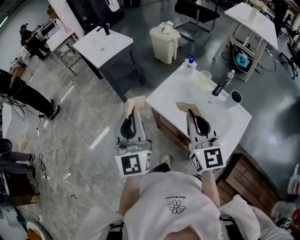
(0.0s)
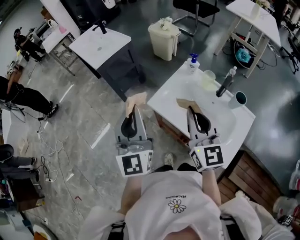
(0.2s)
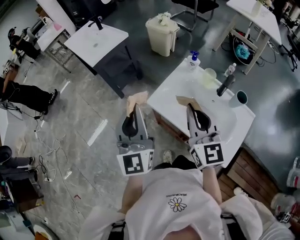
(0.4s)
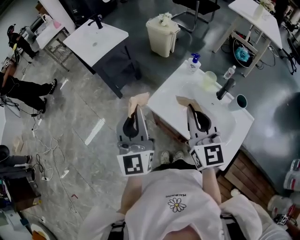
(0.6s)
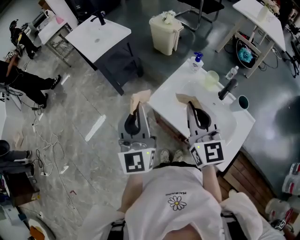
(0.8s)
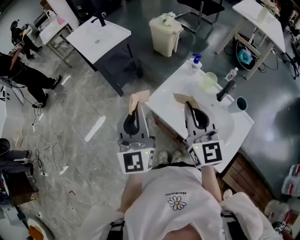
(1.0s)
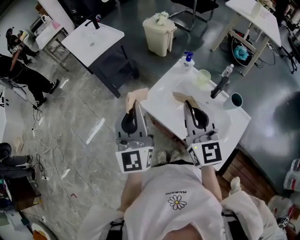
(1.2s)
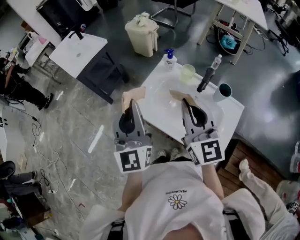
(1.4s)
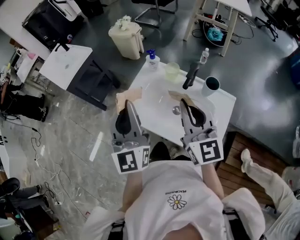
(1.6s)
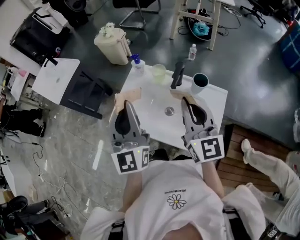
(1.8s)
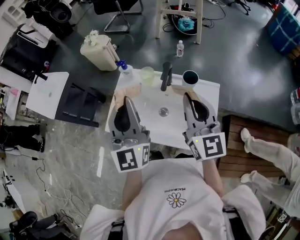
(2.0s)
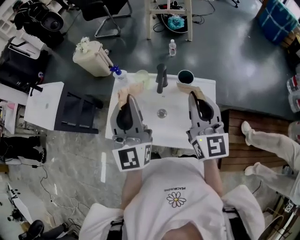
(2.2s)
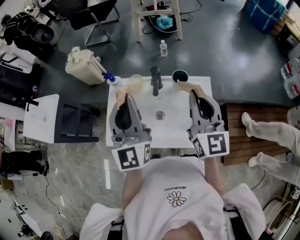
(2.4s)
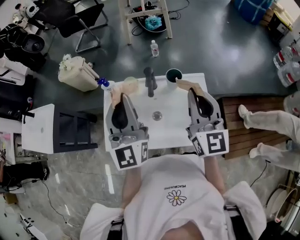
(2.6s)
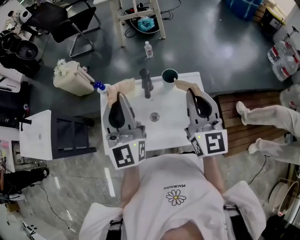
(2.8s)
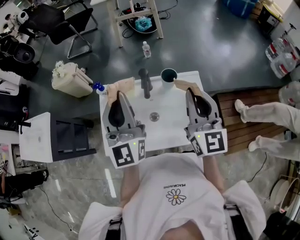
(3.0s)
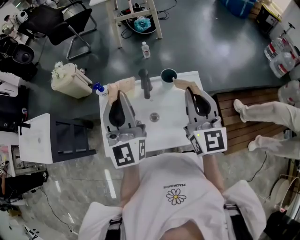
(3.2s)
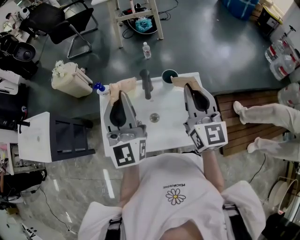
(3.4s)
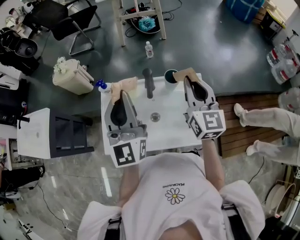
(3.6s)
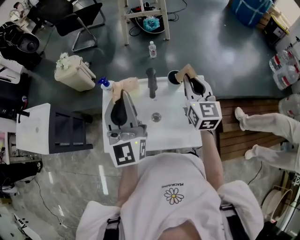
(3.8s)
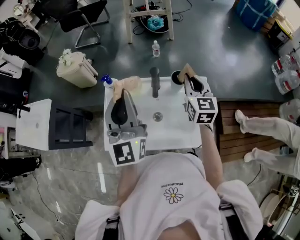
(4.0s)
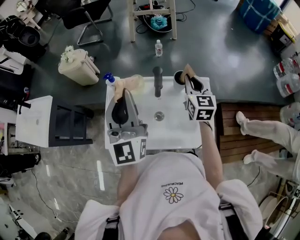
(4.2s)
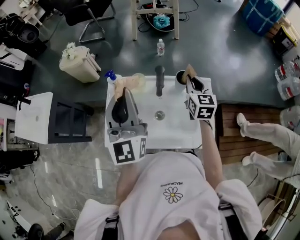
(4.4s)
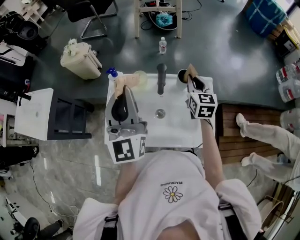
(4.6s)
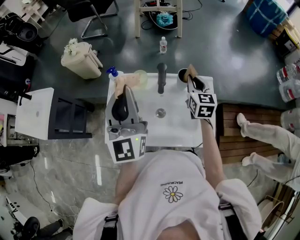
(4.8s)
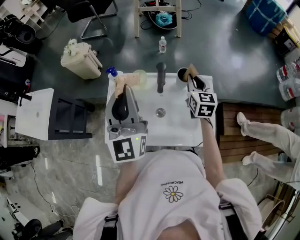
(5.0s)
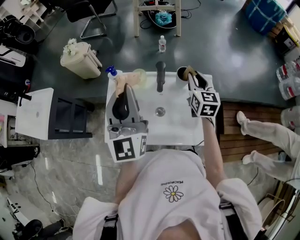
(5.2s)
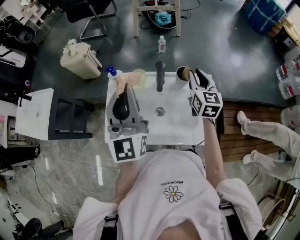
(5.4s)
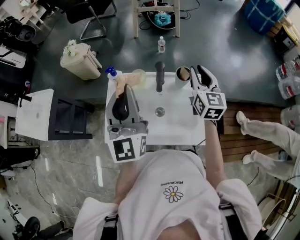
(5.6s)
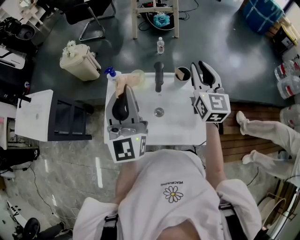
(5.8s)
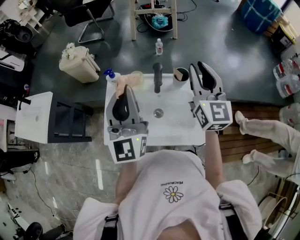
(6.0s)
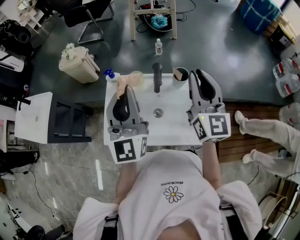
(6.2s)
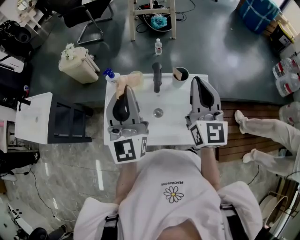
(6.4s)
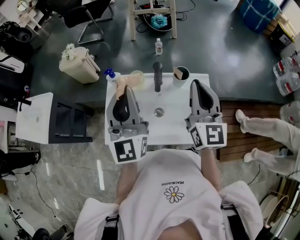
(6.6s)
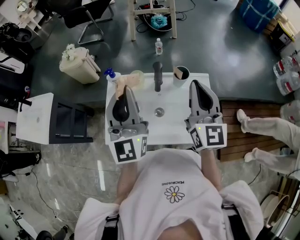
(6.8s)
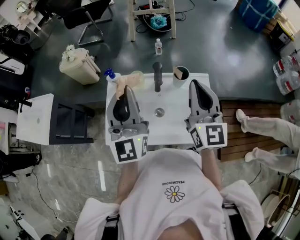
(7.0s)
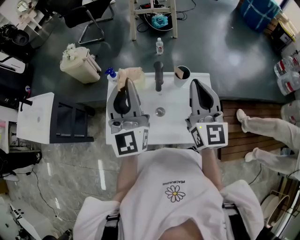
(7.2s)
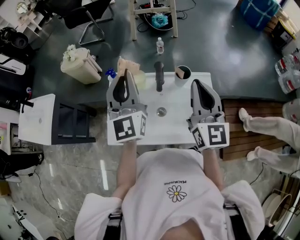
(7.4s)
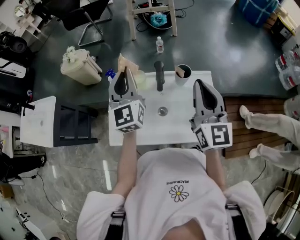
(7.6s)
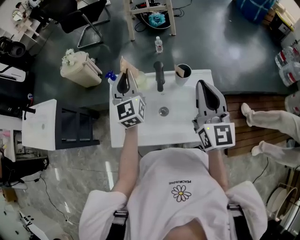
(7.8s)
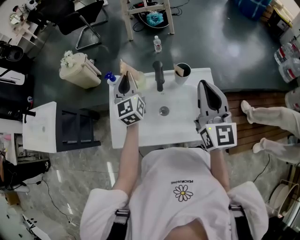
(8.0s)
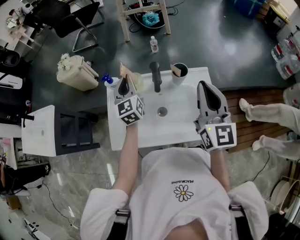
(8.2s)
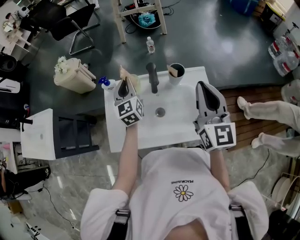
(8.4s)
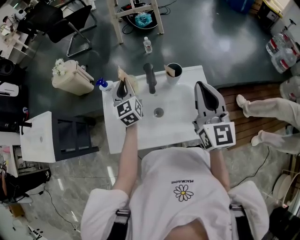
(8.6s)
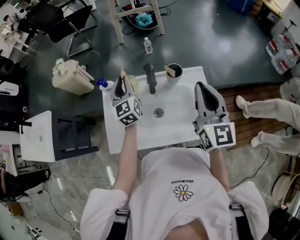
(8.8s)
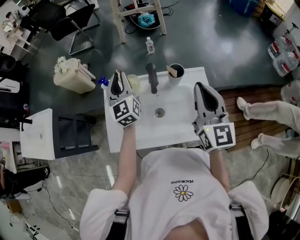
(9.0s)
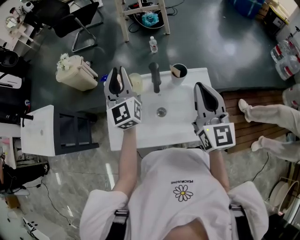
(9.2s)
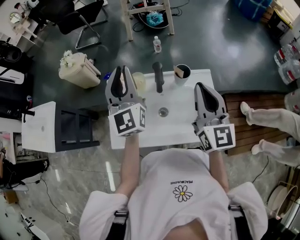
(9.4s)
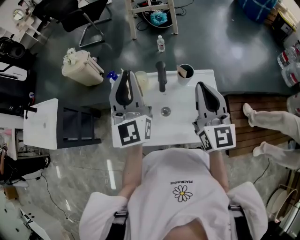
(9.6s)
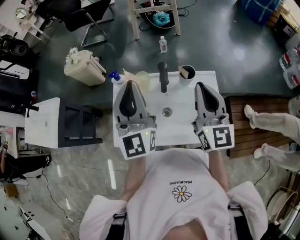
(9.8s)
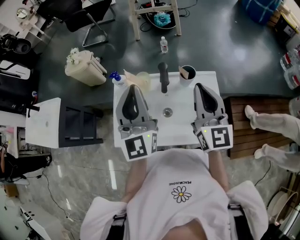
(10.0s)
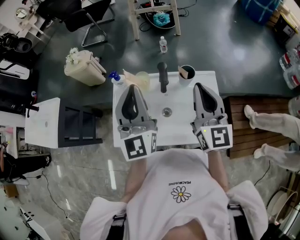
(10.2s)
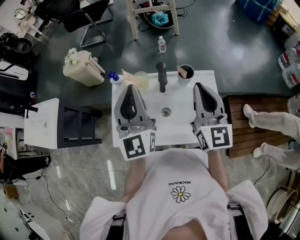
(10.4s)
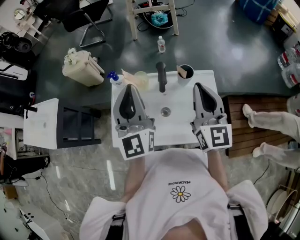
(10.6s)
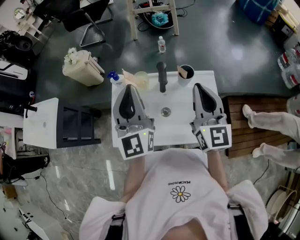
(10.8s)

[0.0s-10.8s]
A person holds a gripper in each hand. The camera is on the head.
0.0s to 1.6s: Both grippers travel together to the right and forward, roughly 15 cm.
1.6s to 3.0s: The right gripper moves about 15 cm, and changes its angle by about 40 degrees. Meanwhile the left gripper ends up about 15 cm from where it was, and swivels roughly 30 degrees.
3.0s to 4.6s: The right gripper is displaced forward and downward by roughly 20 cm, and changes its angle by roughly 20 degrees.
4.6s to 6.2s: The right gripper goes approximately 20 cm upward and backward, and rotates about 30 degrees.
6.2s to 7.8s: The left gripper travels forward and downward by some 15 cm.
7.8s to 9.2s: The left gripper travels downward and back again, some 10 cm each way.
9.2s to 10.8s: The left gripper goes roughly 10 cm backward.

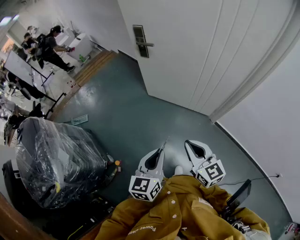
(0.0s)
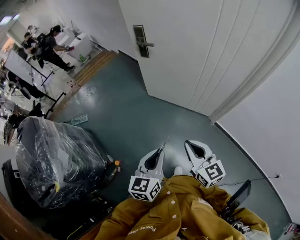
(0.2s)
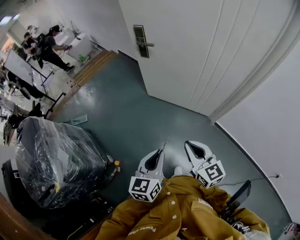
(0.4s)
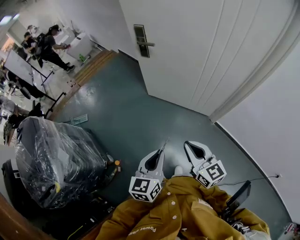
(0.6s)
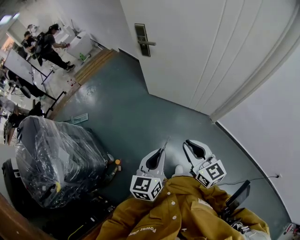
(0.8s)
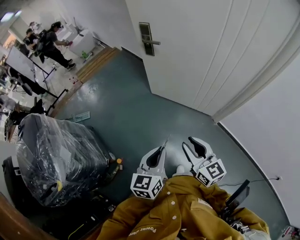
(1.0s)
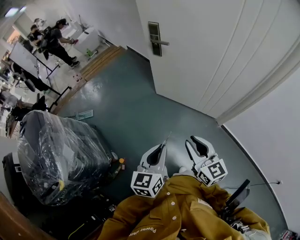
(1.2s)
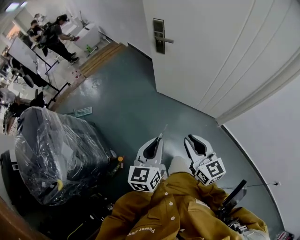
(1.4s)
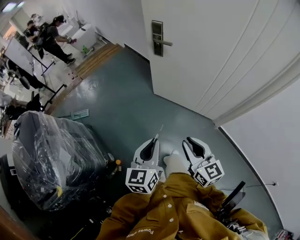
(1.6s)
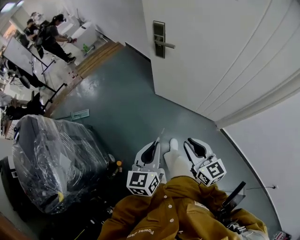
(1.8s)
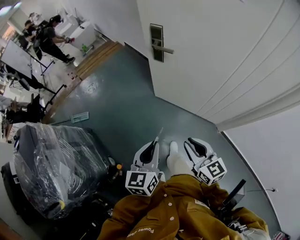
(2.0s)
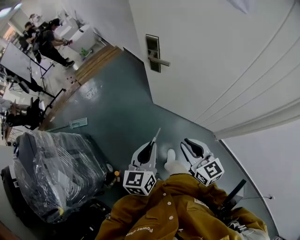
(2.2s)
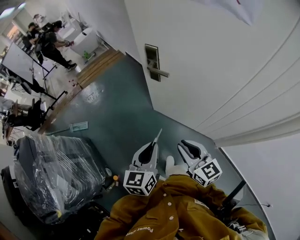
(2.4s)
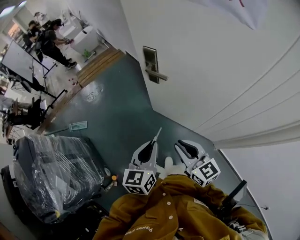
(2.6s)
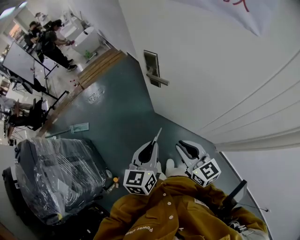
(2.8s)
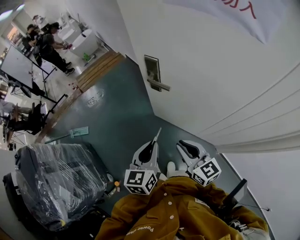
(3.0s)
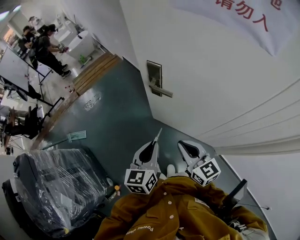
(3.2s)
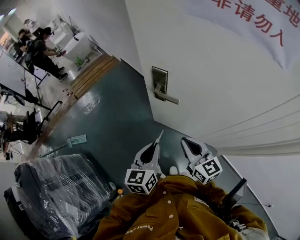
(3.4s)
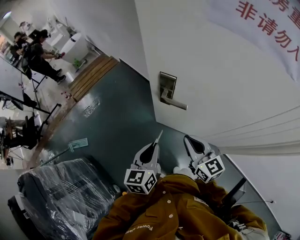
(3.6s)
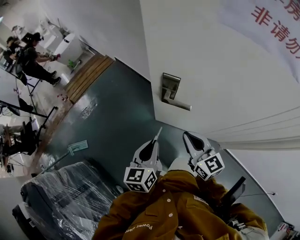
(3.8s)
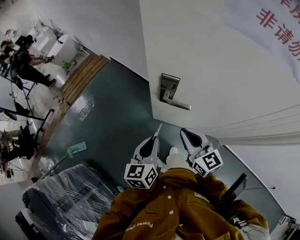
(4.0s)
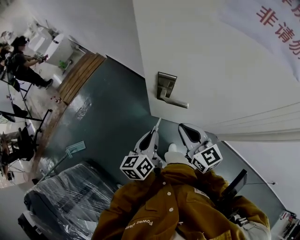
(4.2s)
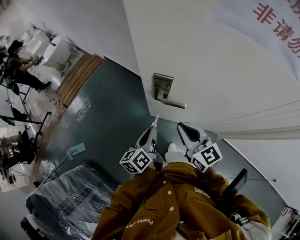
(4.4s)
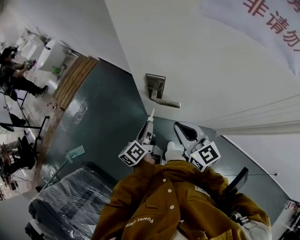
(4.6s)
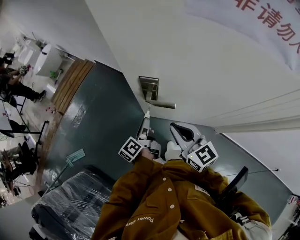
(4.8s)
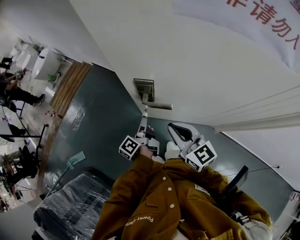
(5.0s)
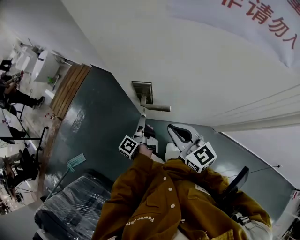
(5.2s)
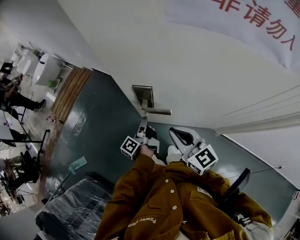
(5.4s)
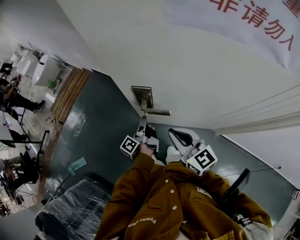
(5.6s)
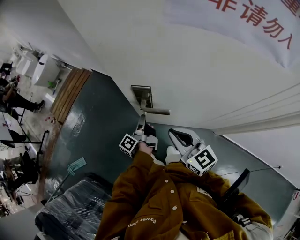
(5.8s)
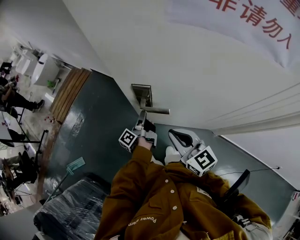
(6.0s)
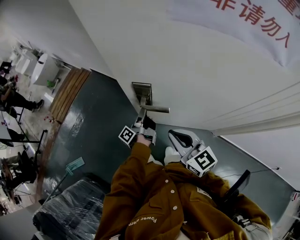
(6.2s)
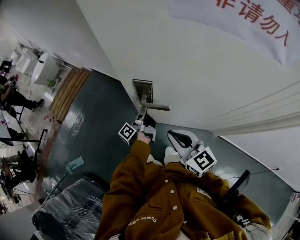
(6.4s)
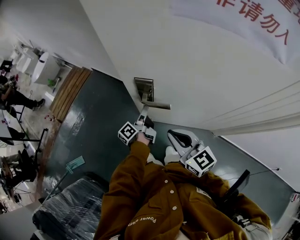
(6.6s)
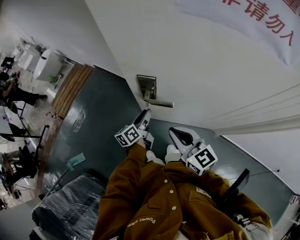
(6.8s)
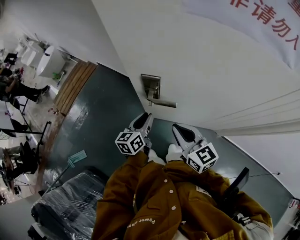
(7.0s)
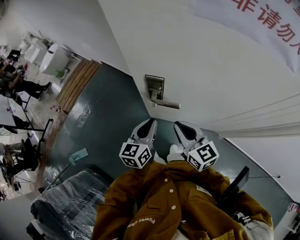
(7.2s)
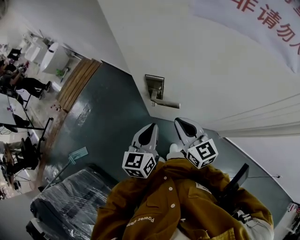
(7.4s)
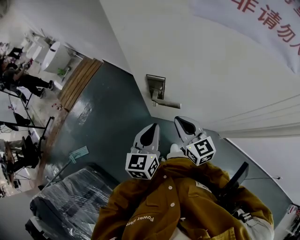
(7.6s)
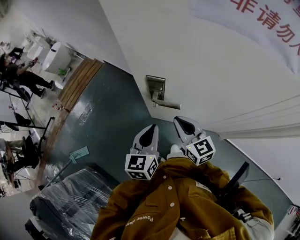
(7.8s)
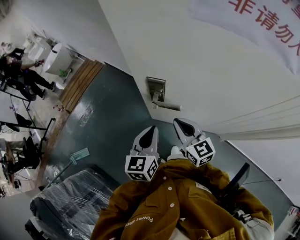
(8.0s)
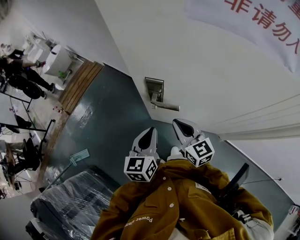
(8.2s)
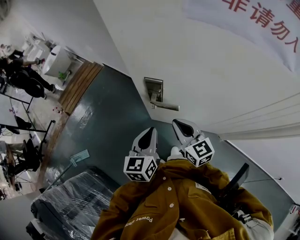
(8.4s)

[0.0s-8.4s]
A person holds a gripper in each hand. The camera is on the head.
0.0s to 1.4s: The left gripper moves to the left and forward, roughly 10 cm, while the right gripper goes roughly 5 cm to the left.
1.4s to 2.8s: The grippers both shift forward by roughly 30 cm.
2.8s to 4.2s: The right gripper heads forward, covering approximately 20 cm, while the left gripper goes approximately 25 cm forward and to the left, and swivels about 30 degrees.
4.2s to 5.6s: The left gripper travels forward and downward by roughly 15 cm, and twists about 50 degrees counterclockwise, seen from behind.
5.6s to 7.0s: The left gripper rolls clockwise, seen from behind, by roughly 60 degrees.
7.0s to 8.4s: The left gripper moves upward and backward, about 10 cm, and closes.

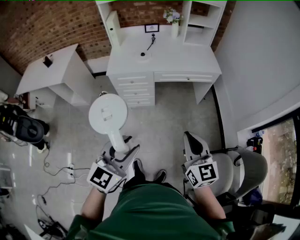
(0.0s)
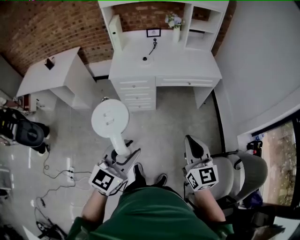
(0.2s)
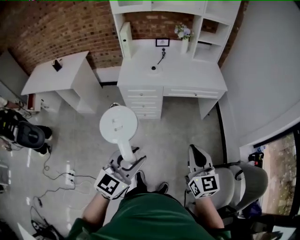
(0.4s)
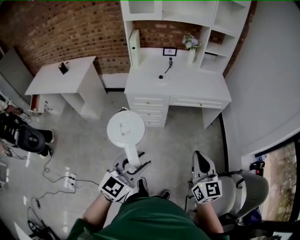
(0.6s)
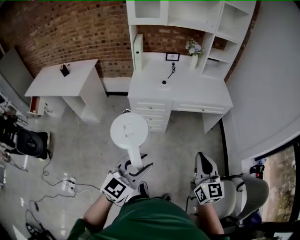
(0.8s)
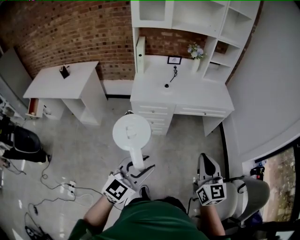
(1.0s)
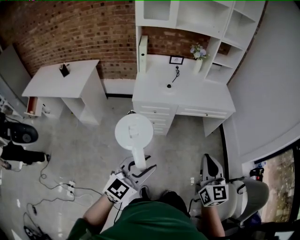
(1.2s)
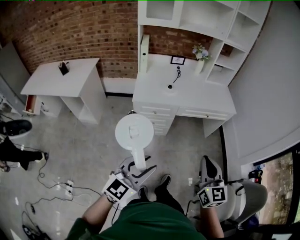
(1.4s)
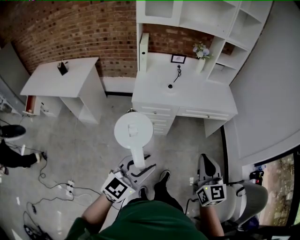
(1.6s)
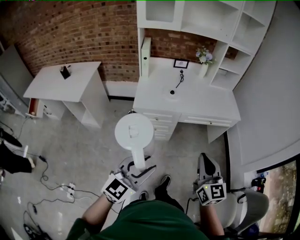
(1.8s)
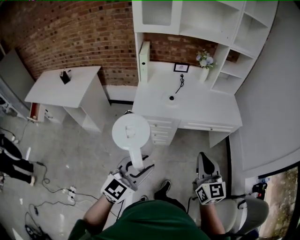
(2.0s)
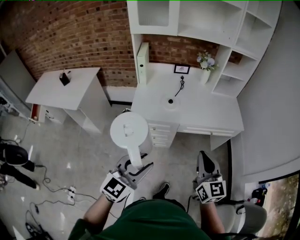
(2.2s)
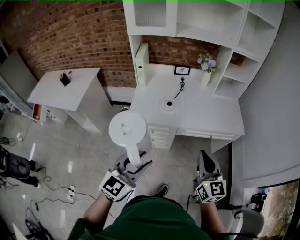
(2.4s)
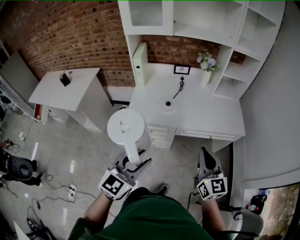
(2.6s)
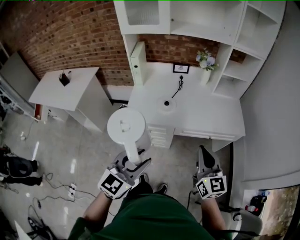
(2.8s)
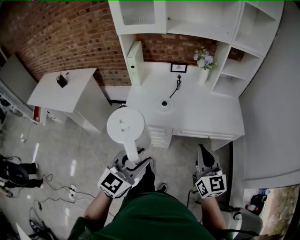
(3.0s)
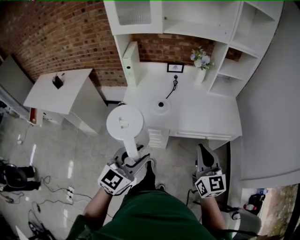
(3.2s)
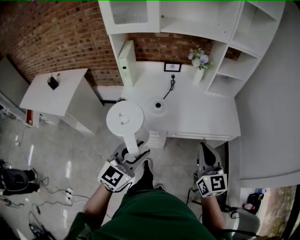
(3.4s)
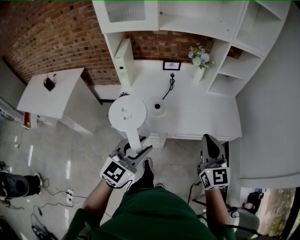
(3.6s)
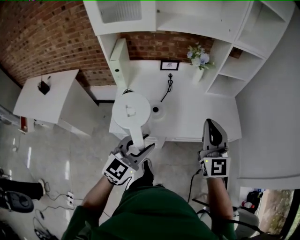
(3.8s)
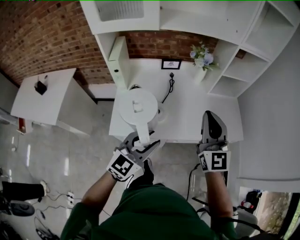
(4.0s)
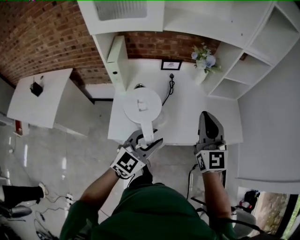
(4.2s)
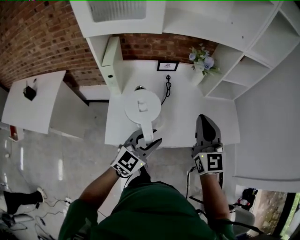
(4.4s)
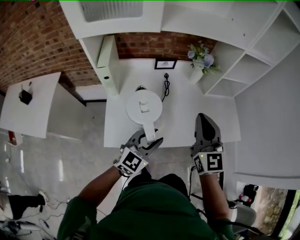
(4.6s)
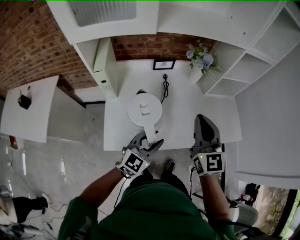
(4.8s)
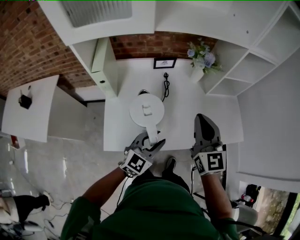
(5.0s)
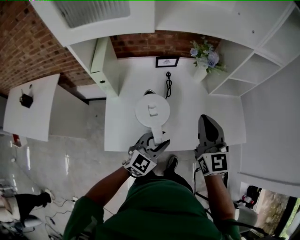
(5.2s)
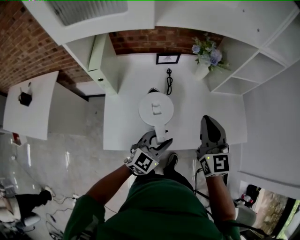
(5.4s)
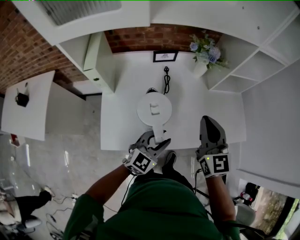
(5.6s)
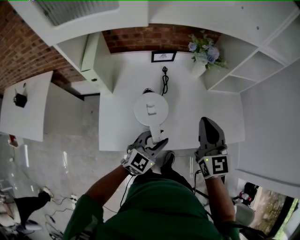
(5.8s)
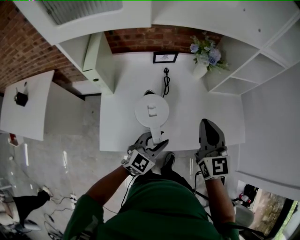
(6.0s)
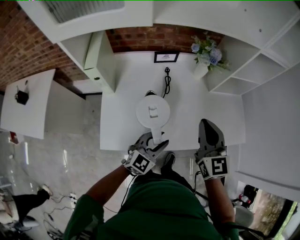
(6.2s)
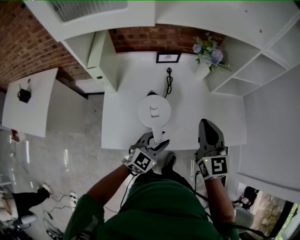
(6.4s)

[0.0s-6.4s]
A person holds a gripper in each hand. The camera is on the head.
0.0s to 1.6s: Both grippers move to the left, approximately 15 cm.
1.6s to 3.2s: The two grippers go approximately 30 cm forward.
3.2s to 4.8s: The left gripper moves forward, some 30 cm. Meanwhile the right gripper travels forward and to the left by some 35 cm.
4.8s to 6.4s: The grippers both shift downward by about 5 cm.
